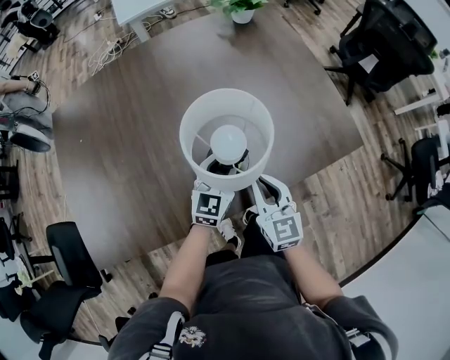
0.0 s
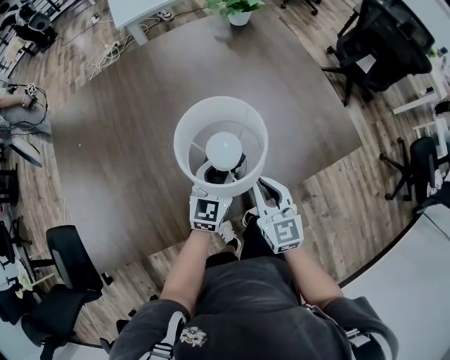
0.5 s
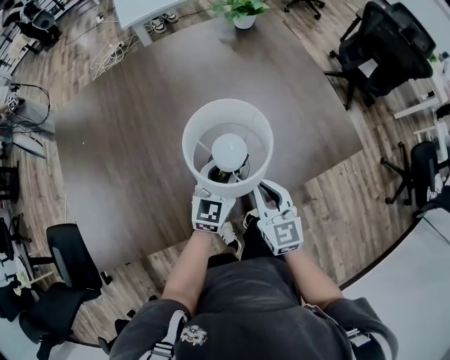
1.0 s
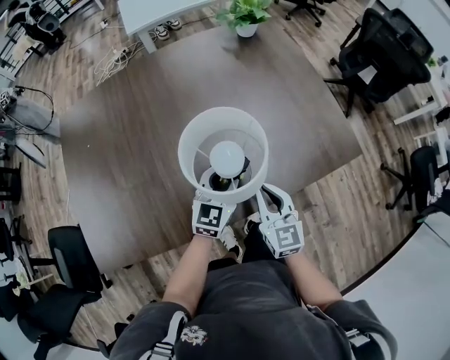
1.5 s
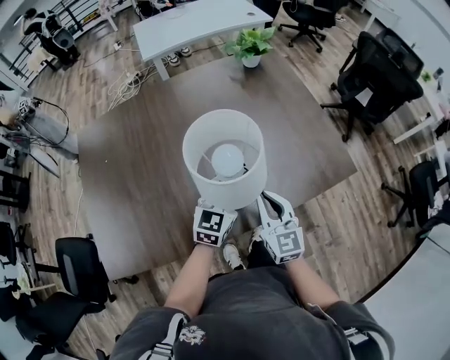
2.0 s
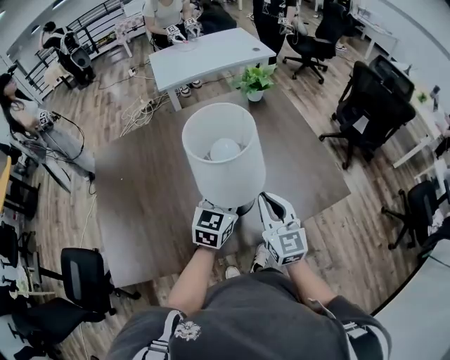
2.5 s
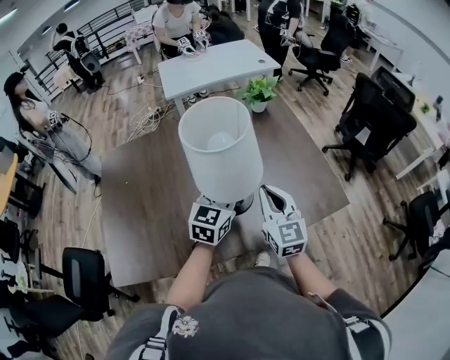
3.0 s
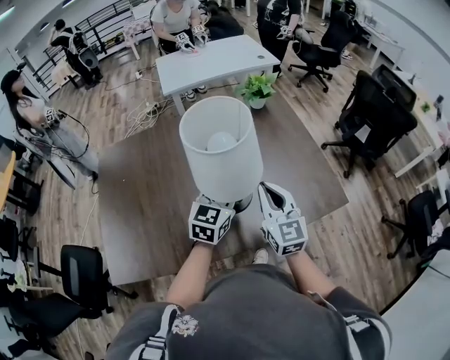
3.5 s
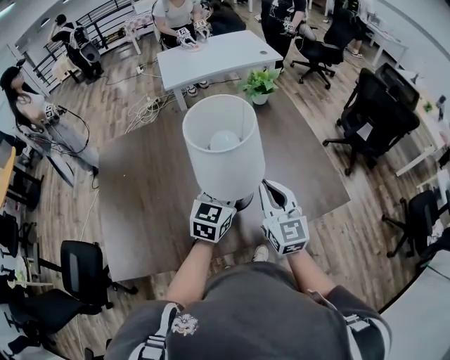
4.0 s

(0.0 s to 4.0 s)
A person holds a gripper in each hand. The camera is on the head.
0.0 s - 2.0 s: Both grippers travel together upward, approximately 10 cm.
2.0 s - 4.0 s: The two grippers go some 15 cm upward.

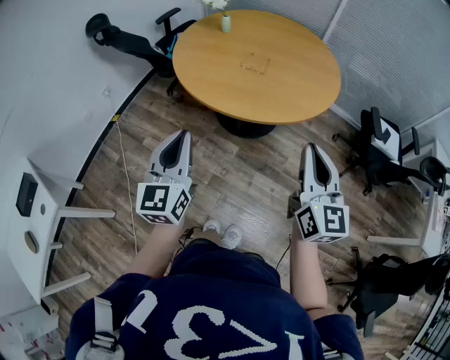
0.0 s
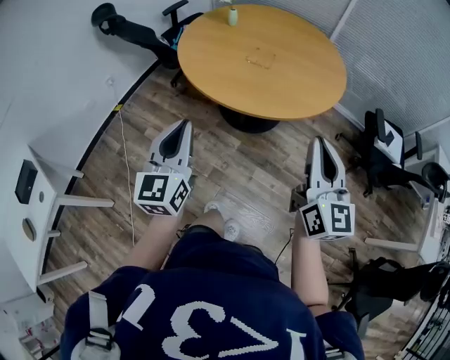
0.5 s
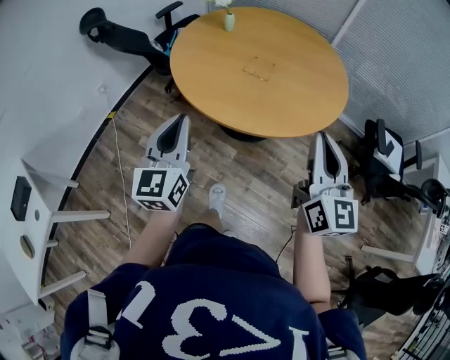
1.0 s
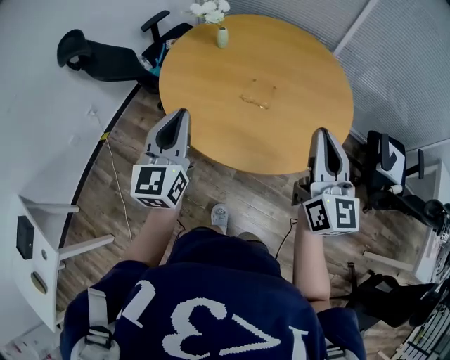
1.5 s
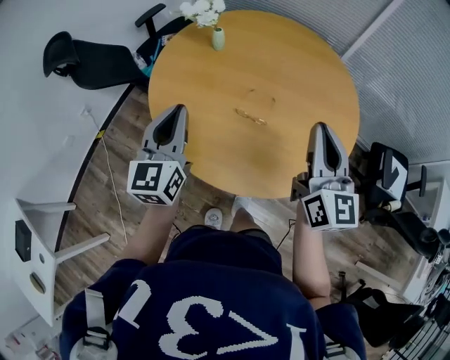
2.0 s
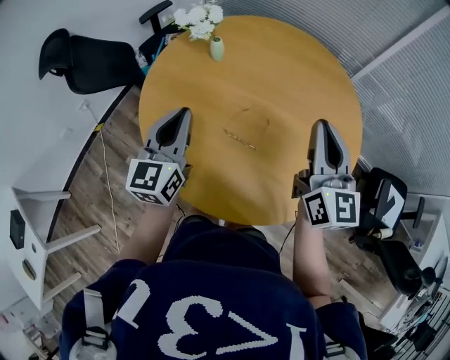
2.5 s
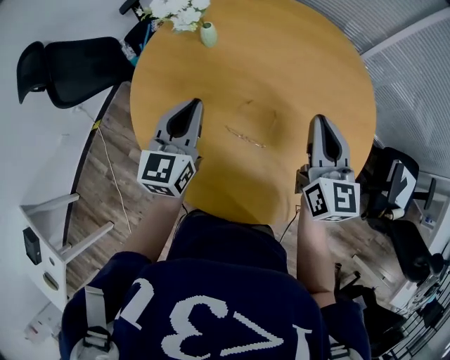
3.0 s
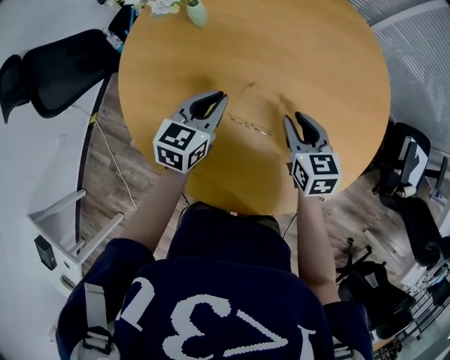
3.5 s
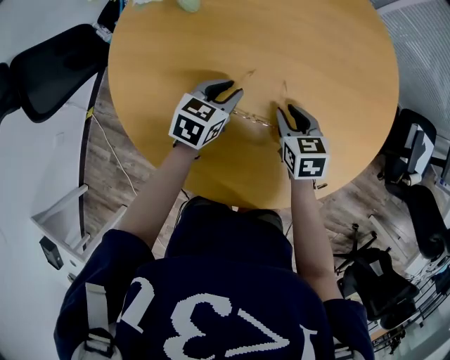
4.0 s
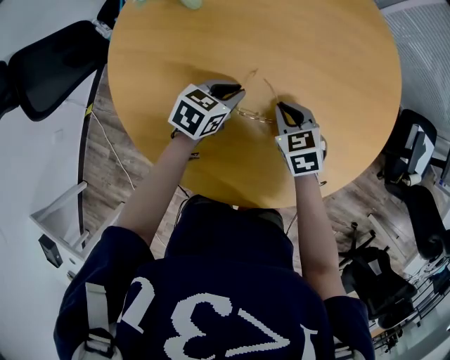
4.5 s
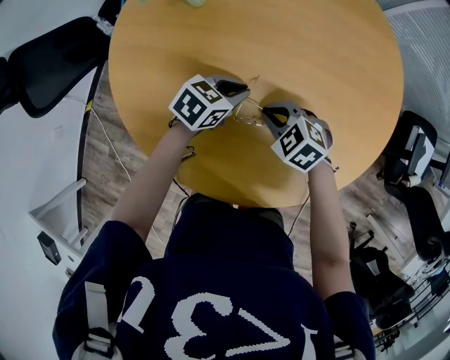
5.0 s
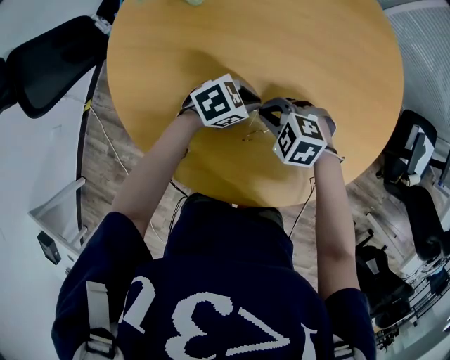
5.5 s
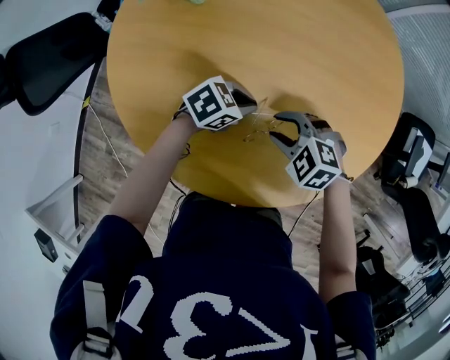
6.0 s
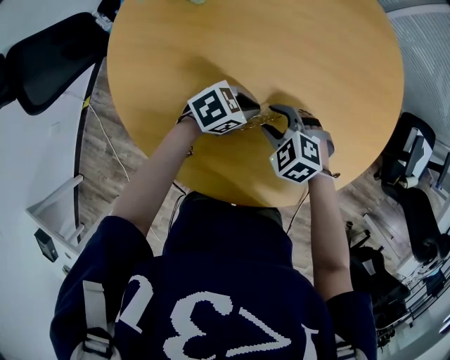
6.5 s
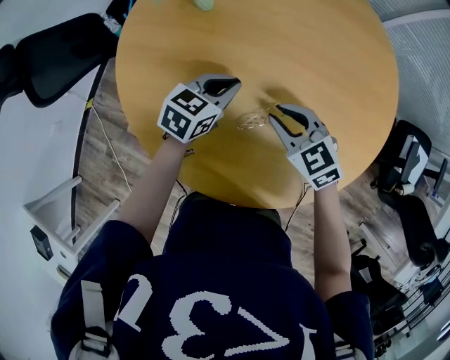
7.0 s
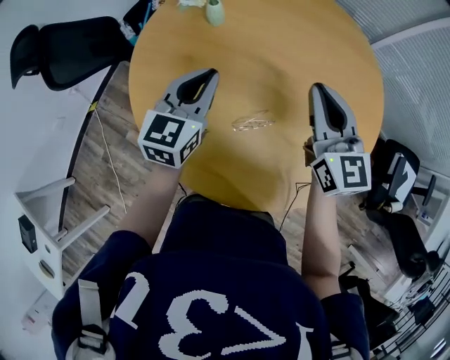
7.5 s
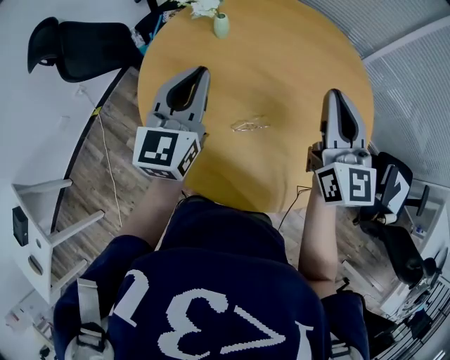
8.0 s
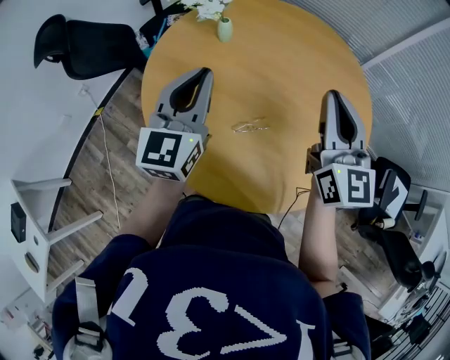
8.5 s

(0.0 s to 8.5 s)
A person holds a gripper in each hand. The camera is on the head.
0.0 s - 2.0 s: Both grippers move forward, approximately 40 cm.
2.0 s - 4.0 s: The left gripper shifts roughly 35 cm downward, forward and to the right, points its fingers about 40 degrees further downward, and opens. Meanwhile the right gripper shifts approximately 40 cm downward and forward, angles its fingers downward, by approximately 50 degrees, and opens.
4.0 s - 6.5 s: The left gripper changes place by about 10 cm, turns by some 40 degrees, and closes up. The right gripper ends up roughly 5 cm from where it was, rolls counterclockwise, seen from behind, by approximately 50 degrees, and closes, then reopens.
6.5 s - 8.5 s: Both grippers travel together upward, about 35 cm. The right gripper tips its fingers upward by some 60 degrees, and closes up, while the left gripper tips its fingers upward by about 40 degrees.

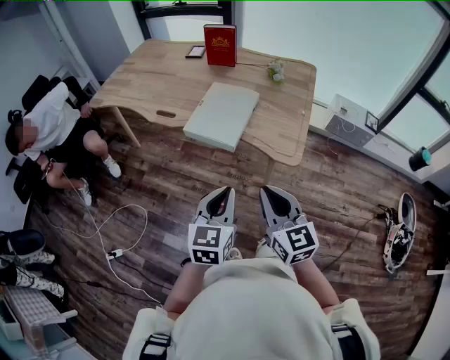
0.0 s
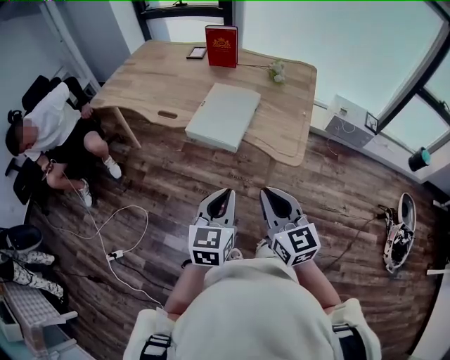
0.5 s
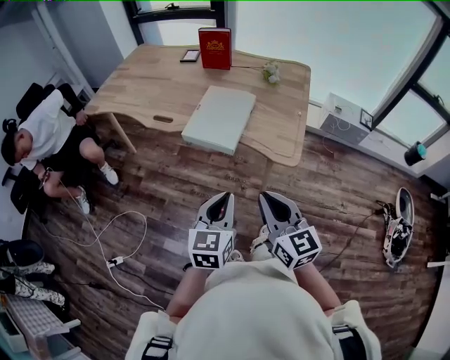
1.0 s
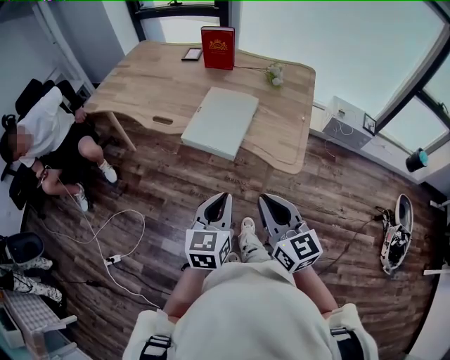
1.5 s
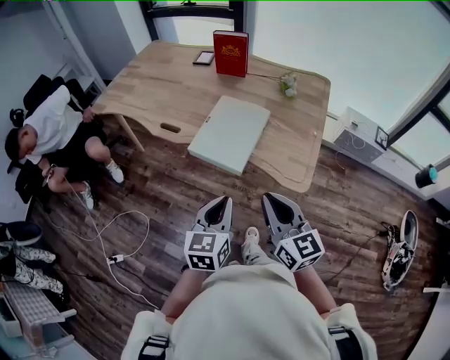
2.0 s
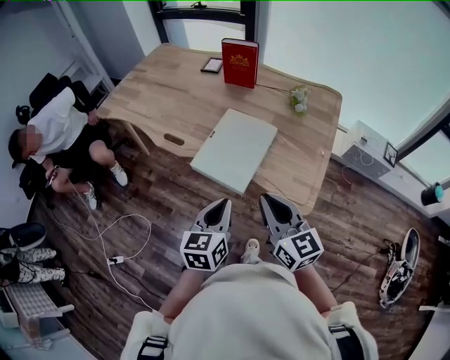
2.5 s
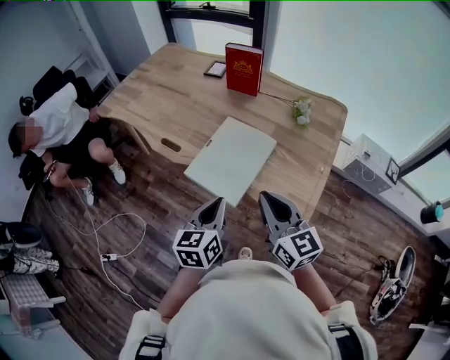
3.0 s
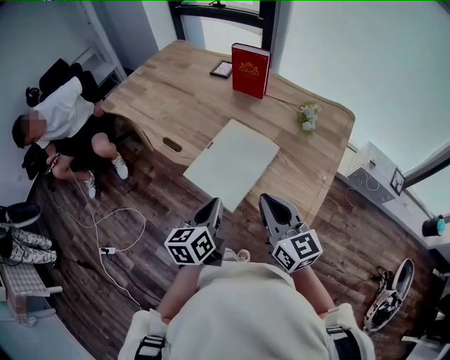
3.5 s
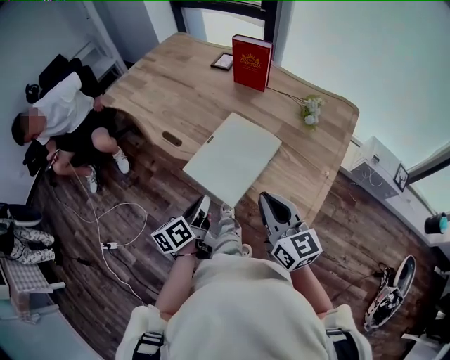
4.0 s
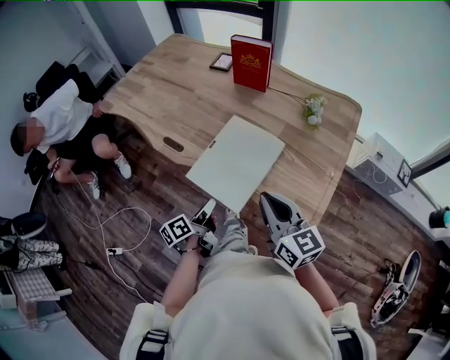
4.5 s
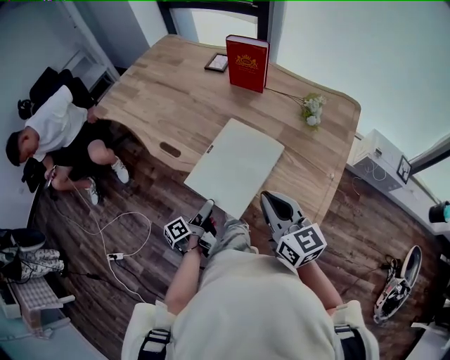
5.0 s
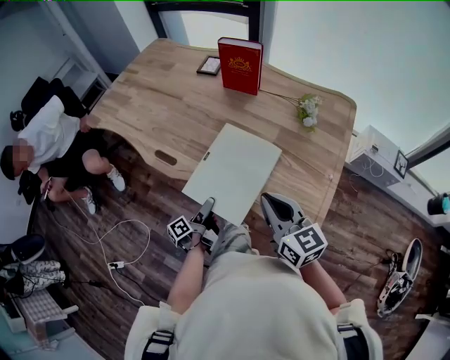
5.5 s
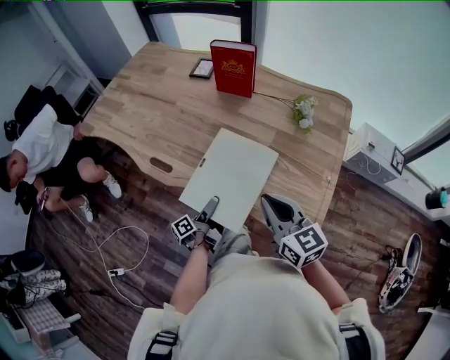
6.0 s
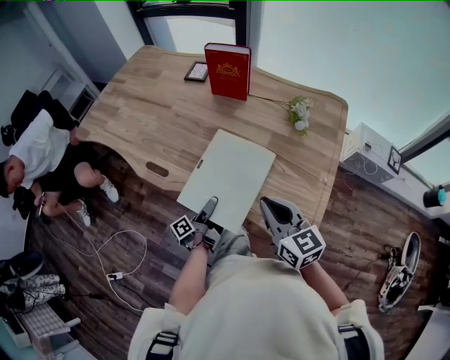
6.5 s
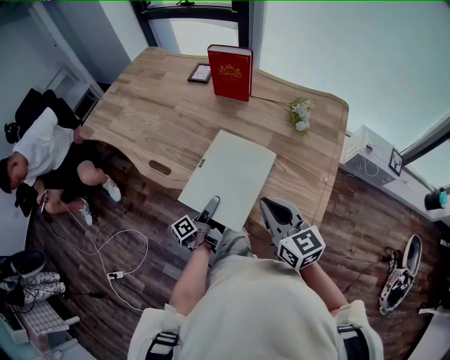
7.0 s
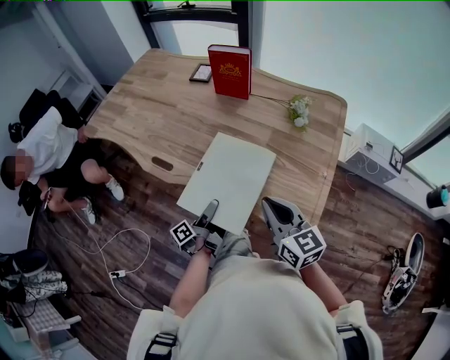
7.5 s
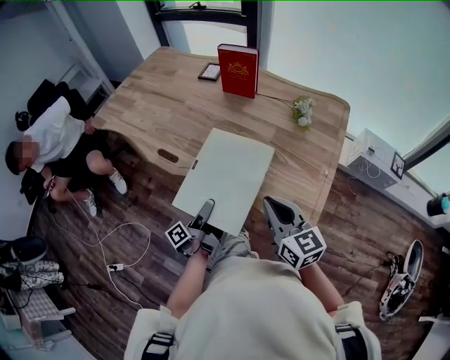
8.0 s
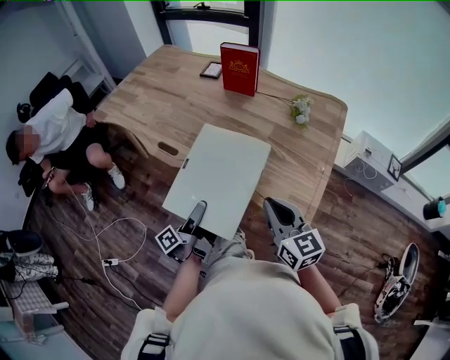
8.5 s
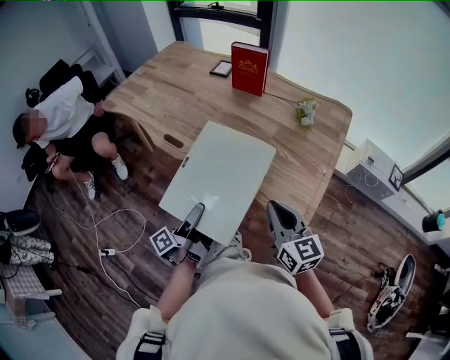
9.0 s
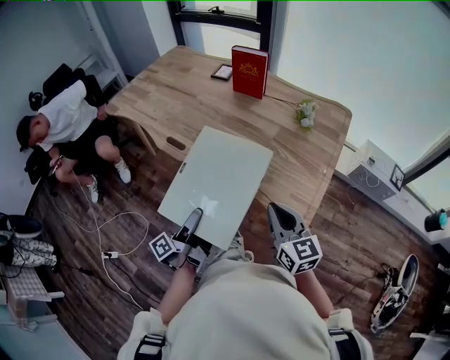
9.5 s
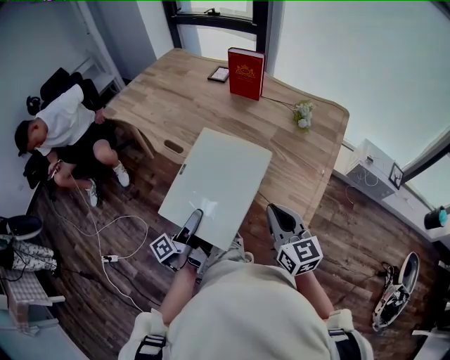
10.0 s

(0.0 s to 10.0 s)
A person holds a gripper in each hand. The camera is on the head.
0.0 s - 2.0 s: Both grippers travel together forward, about 10 cm.
2.0 s - 4.0 s: The left gripper is displaced forward and downward by some 15 cm, and rolls counterclockwise, seen from behind, by some 40 degrees. The right gripper moves forward, roughly 15 cm.
4.0 s - 6.0 s: The left gripper shifts some 20 cm downward and forward, changes its angle by about 40 degrees, and opens; the right gripper travels forward by roughly 10 cm.
6.0 s - 8.0 s: The left gripper shifts approximately 10 cm upward and backward, and closes up. The right gripper moves backward, some 5 cm.
8.0 s - 10.0 s: The left gripper moves backward and upward, approximately 10 cm, while the right gripper travels backward by approximately 5 cm.

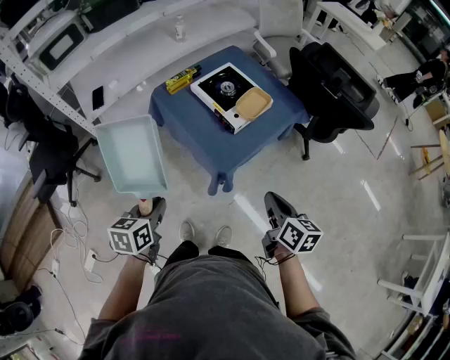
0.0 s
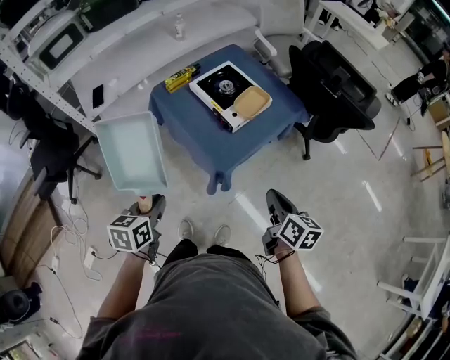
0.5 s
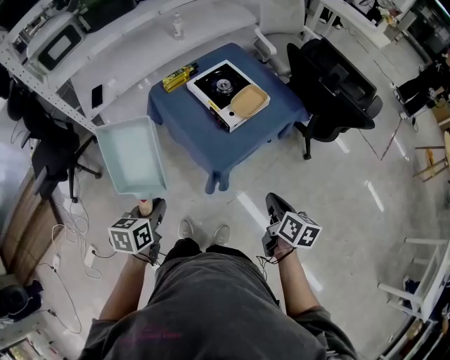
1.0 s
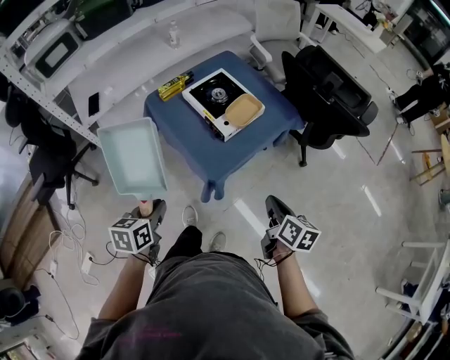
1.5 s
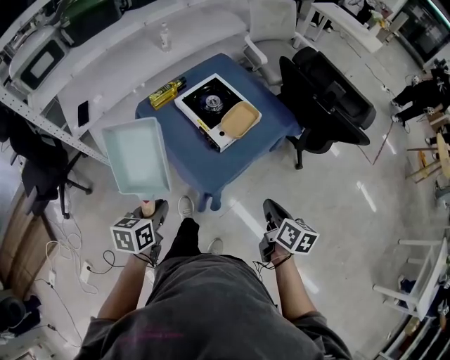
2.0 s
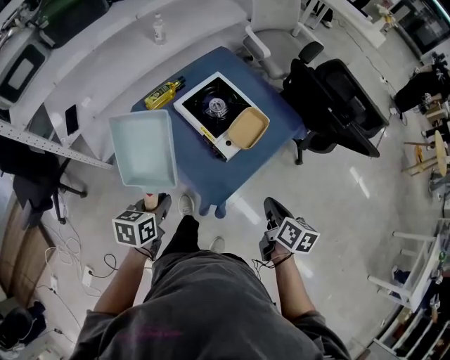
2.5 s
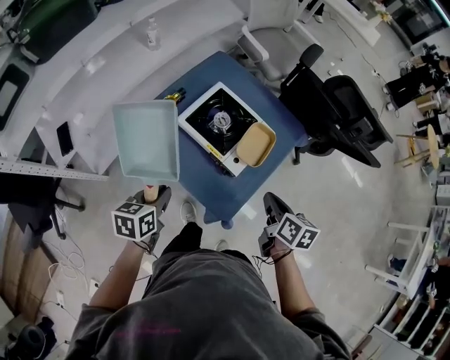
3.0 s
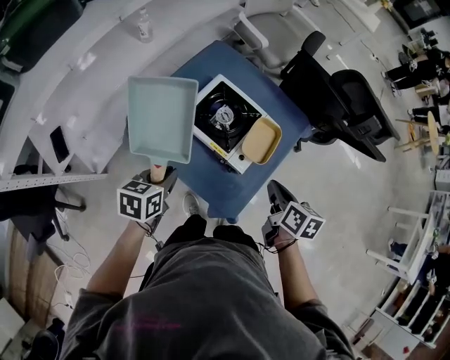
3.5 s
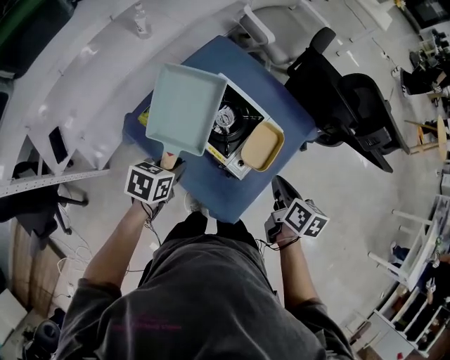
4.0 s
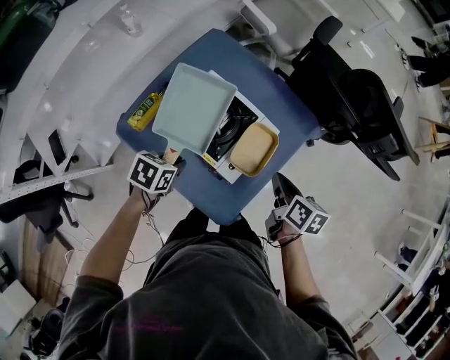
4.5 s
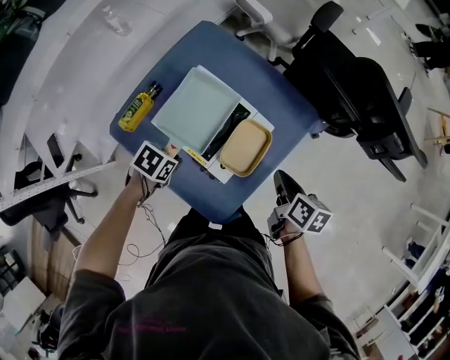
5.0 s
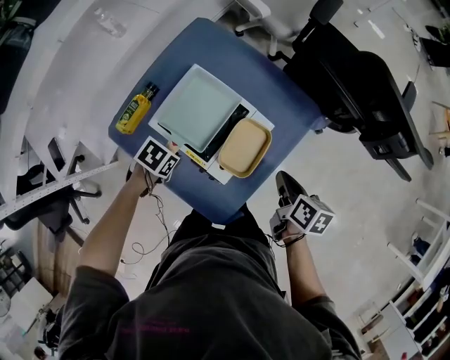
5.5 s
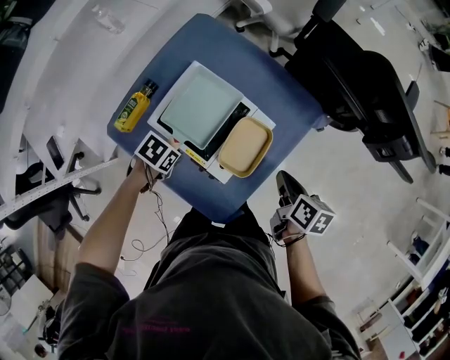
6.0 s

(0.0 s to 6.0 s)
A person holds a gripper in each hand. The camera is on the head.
0.0 s - 2.0 s: The two grippers go roughly 10 cm forward and to the right.
2.0 s - 4.0 s: The right gripper heads forward and to the left, covering roughly 25 cm, while the left gripper is displaced forward by about 30 cm, and swivels roughly 30 degrees.
4.0 s - 6.0 s: The right gripper shifts by some 15 cm. Meanwhile the left gripper goes about 15 cm downward, and rotates some 30 degrees.
